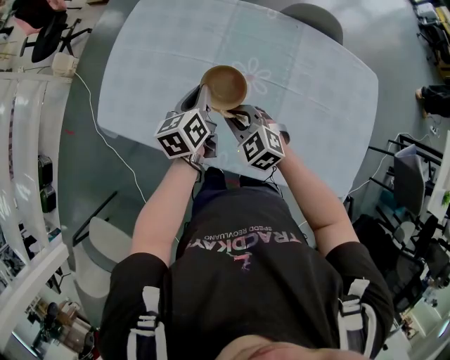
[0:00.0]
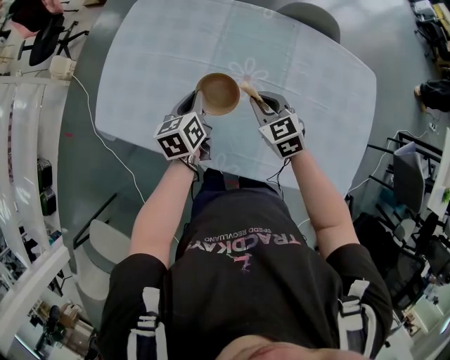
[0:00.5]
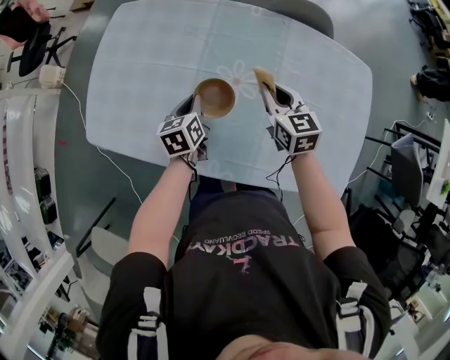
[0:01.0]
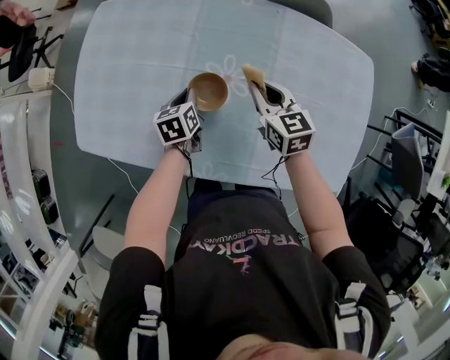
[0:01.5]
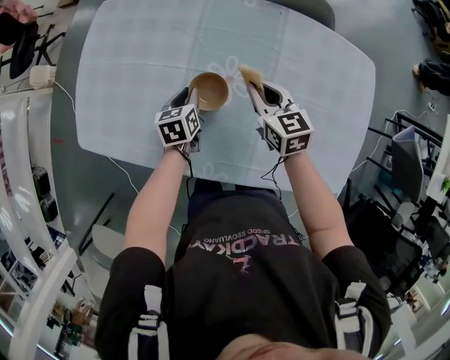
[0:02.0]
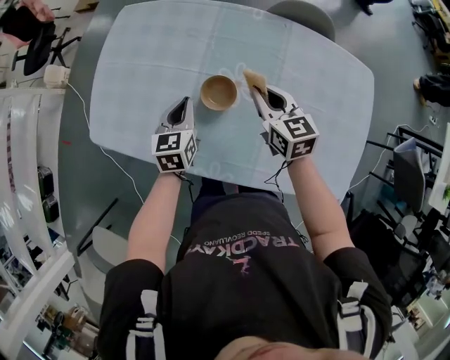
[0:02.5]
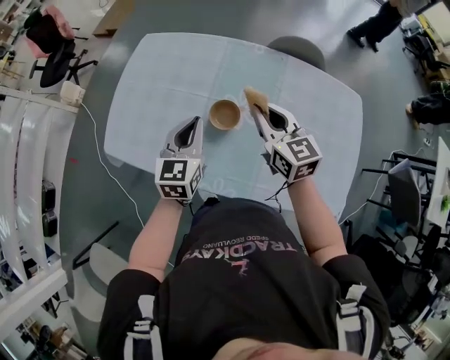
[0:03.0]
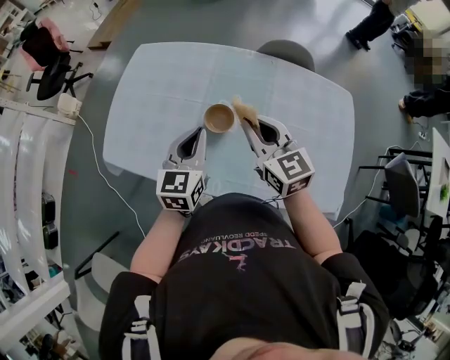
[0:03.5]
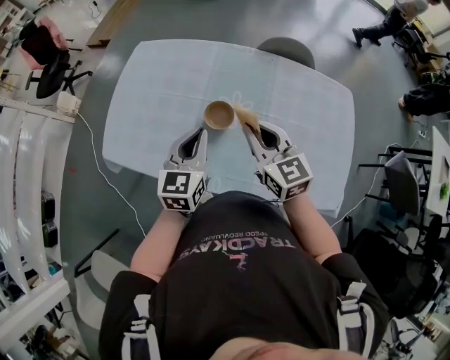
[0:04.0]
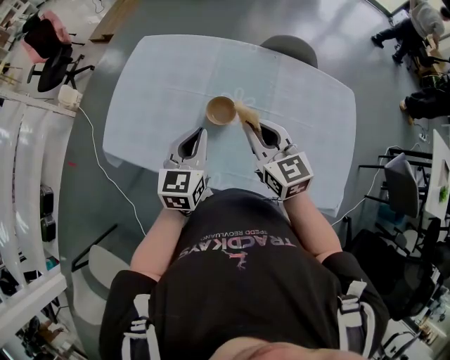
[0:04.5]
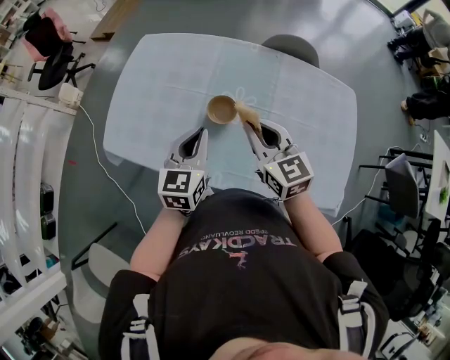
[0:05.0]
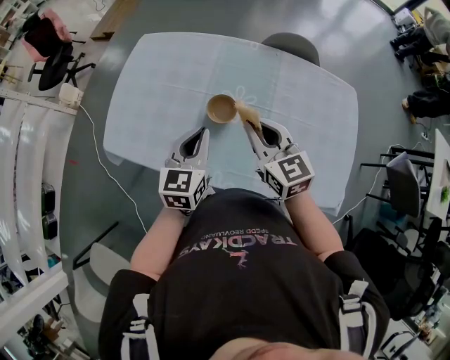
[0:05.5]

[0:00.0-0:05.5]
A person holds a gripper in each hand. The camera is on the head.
0:00.0 to 0:02.0: The left gripper moves downward, roughly 15 cm, and turns by approximately 20 degrees. Meanwhile the right gripper is displaced to the right and forward by approximately 20 cm, and rolls clockwise, seen from behind, by approximately 40 degrees.
0:02.0 to 0:03.5: The grippers both shift upward and backward by approximately 25 cm. The left gripper turns by roughly 30 degrees.
0:03.5 to 0:05.5: There are only small adjustments of the grippers.

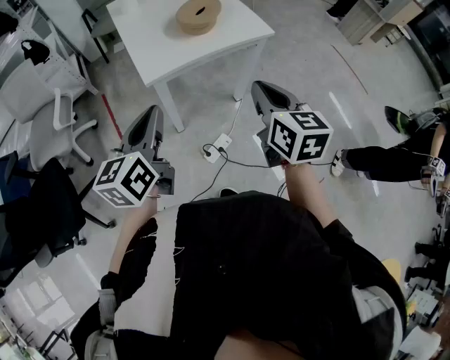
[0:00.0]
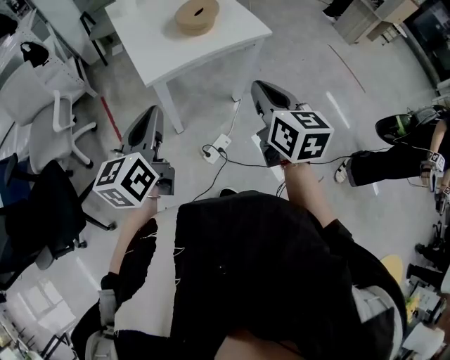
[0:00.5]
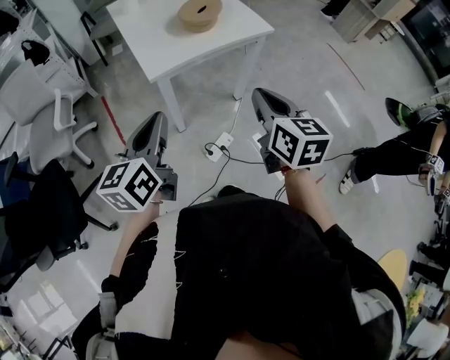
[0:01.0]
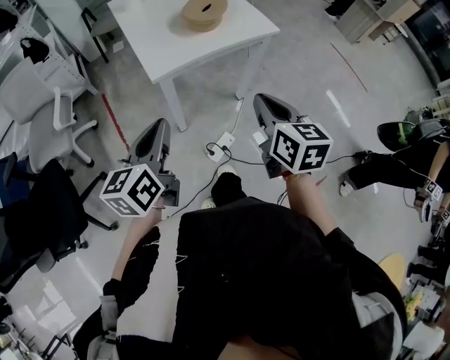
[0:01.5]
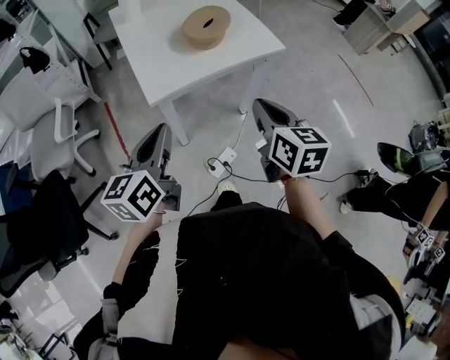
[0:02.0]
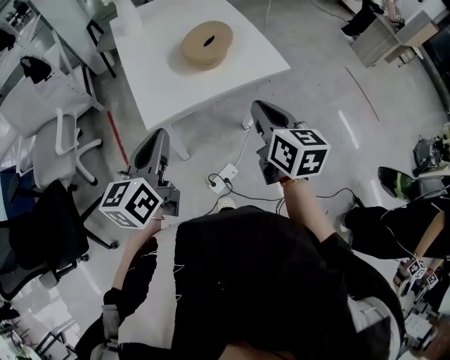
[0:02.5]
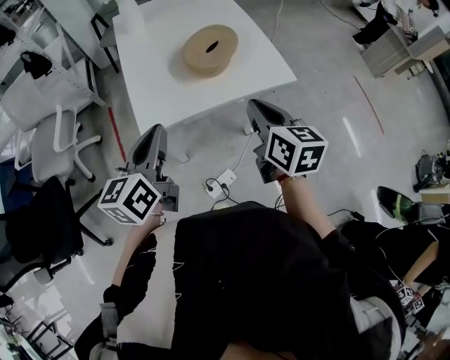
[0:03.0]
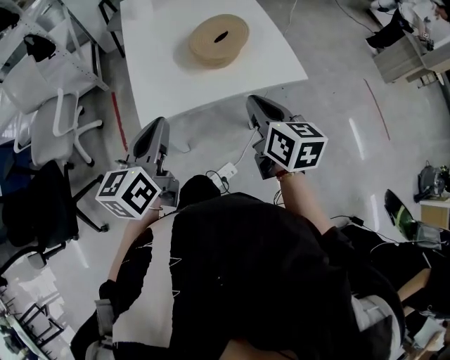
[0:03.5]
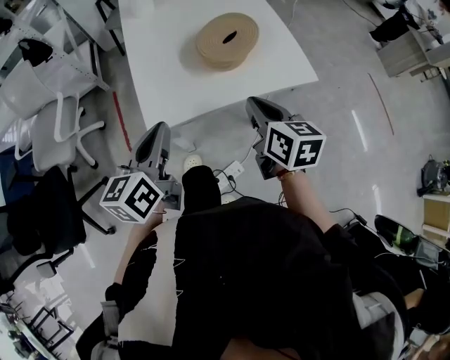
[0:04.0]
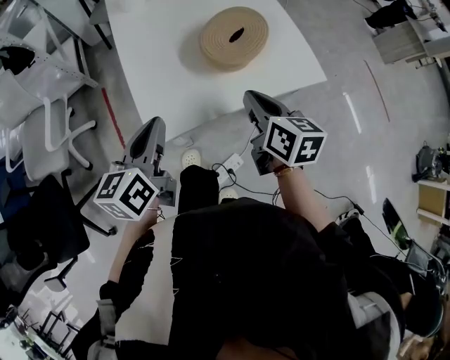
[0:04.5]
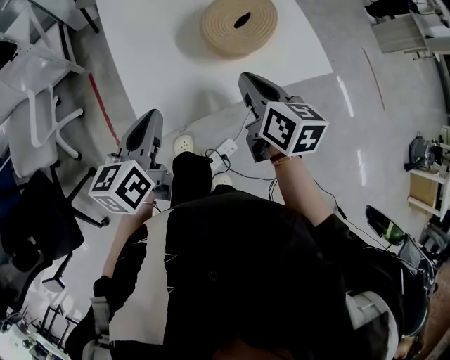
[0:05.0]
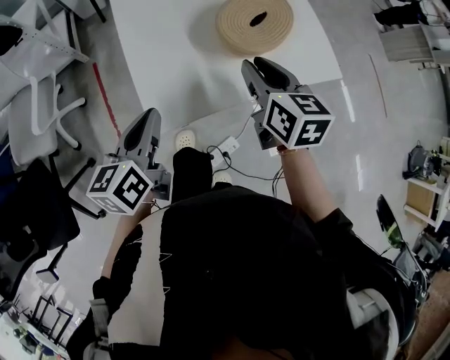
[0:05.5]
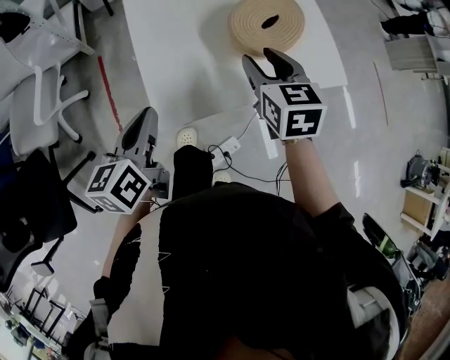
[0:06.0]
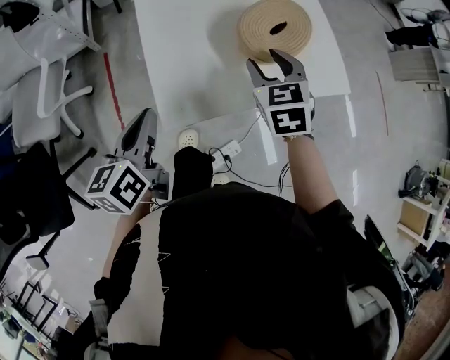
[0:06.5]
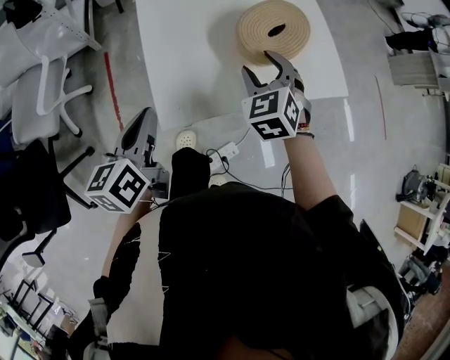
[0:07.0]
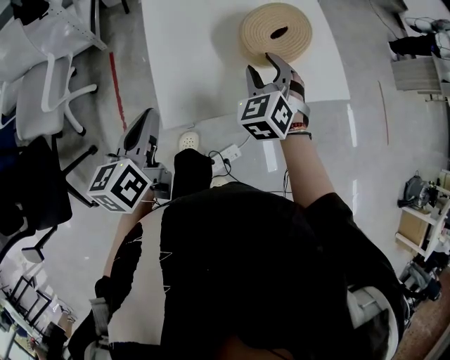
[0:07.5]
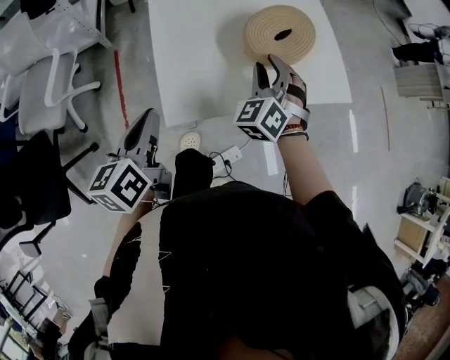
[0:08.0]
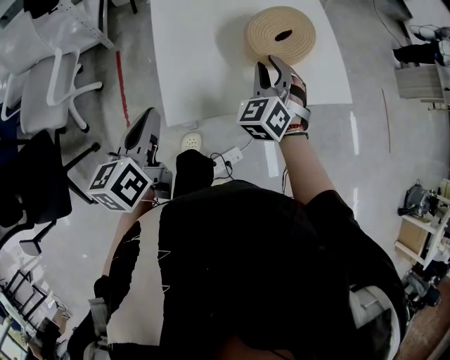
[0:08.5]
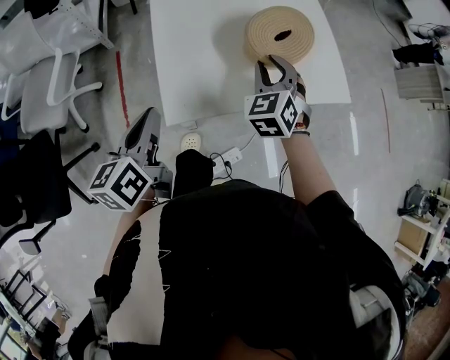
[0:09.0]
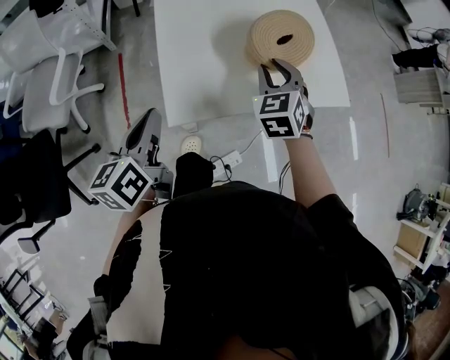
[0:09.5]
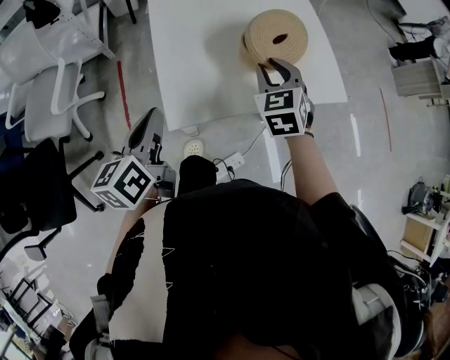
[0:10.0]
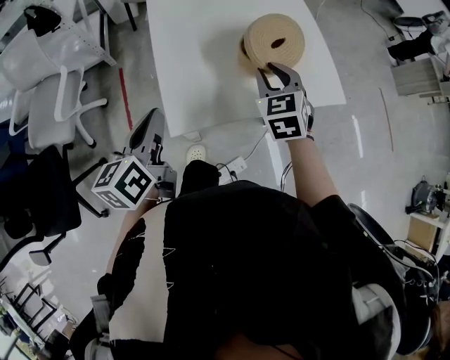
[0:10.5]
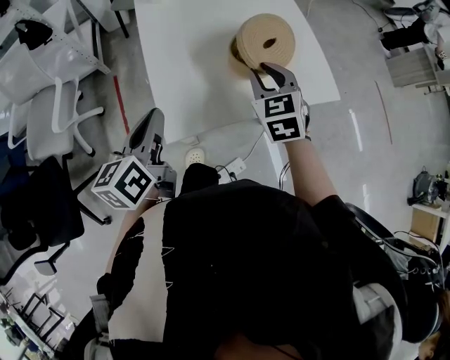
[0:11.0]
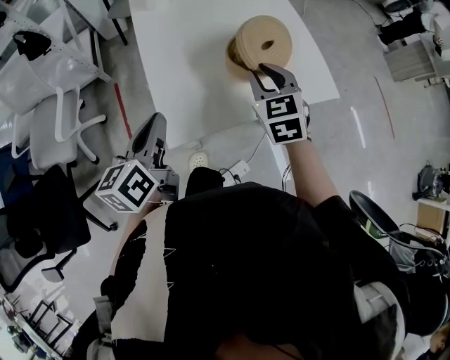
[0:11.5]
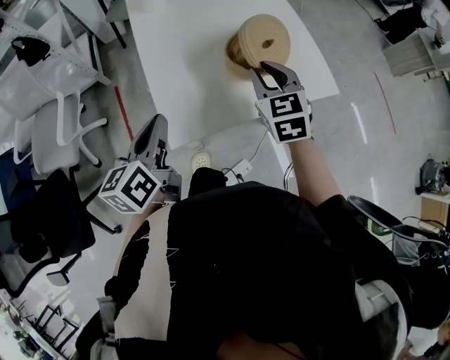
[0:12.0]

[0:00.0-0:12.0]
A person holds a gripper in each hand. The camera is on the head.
0:00.0 to 0:02.0: The two grippers go some 5 cm forward.
0:02.0 to 0:04.0: Both grippers move forward, roughly 15 cm.
0:04.0 to 0:06.0: The right gripper is displaced forward and to the left by about 15 cm, swivels about 20 degrees, and opens; the left gripper travels to the left, downward and forward by some 15 cm.
0:06.0 to 0:08.0: The right gripper rolls counterclockwise, seen from behind, by about 50 degrees.
0:08.0 to 0:10.0: The right gripper swivels roughly 30 degrees.
0:10.0 to 0:12.0: The grippers move only a little.

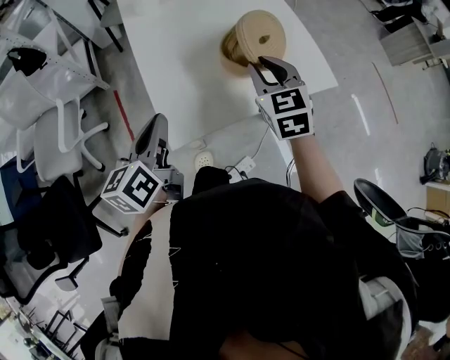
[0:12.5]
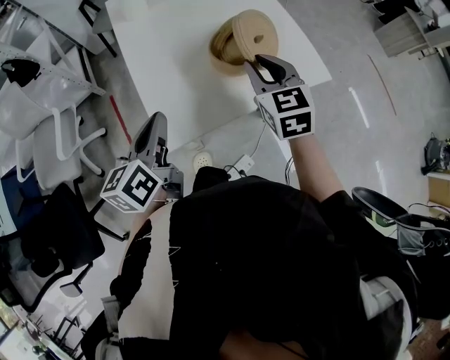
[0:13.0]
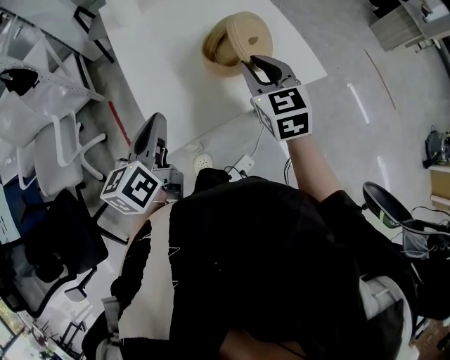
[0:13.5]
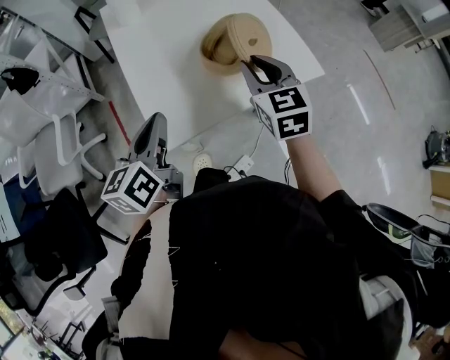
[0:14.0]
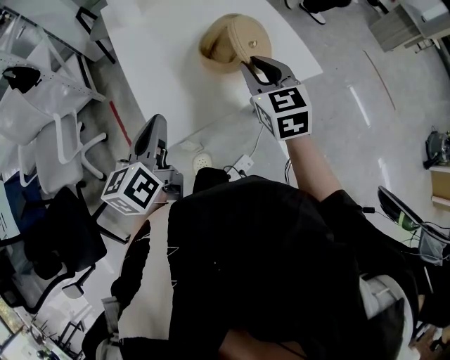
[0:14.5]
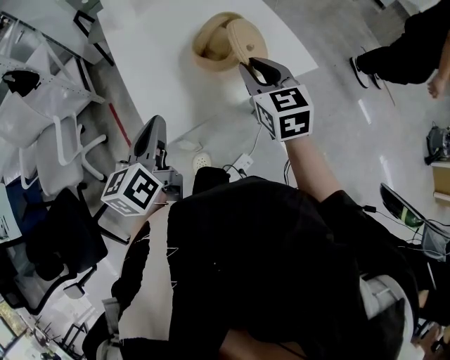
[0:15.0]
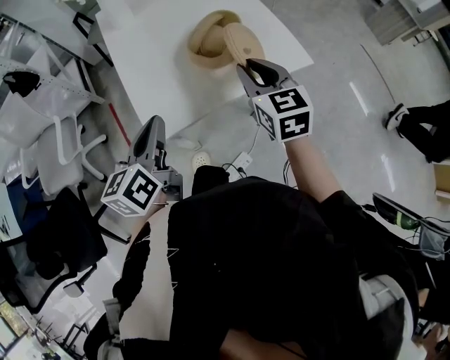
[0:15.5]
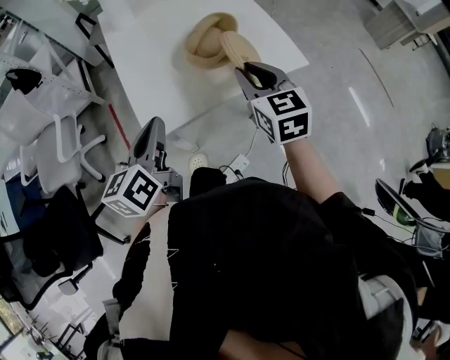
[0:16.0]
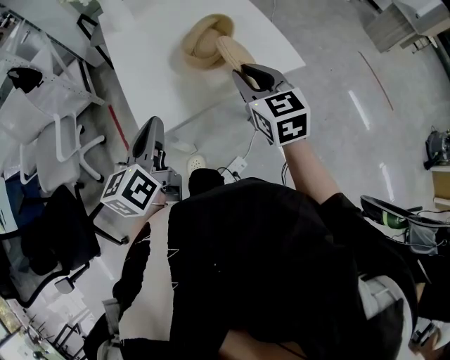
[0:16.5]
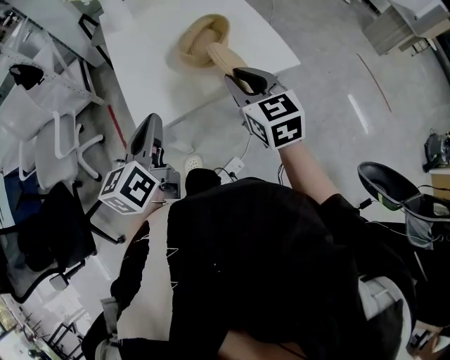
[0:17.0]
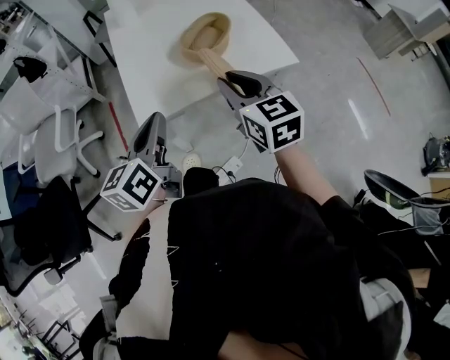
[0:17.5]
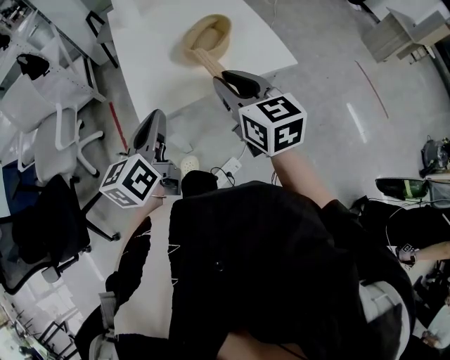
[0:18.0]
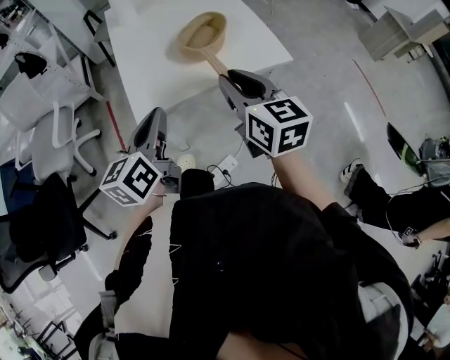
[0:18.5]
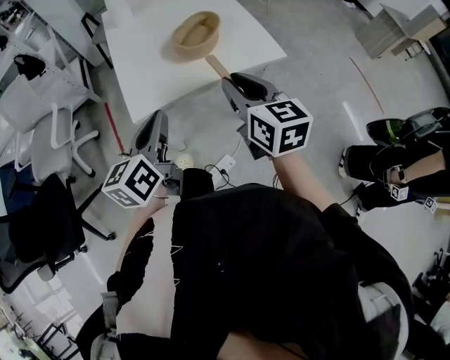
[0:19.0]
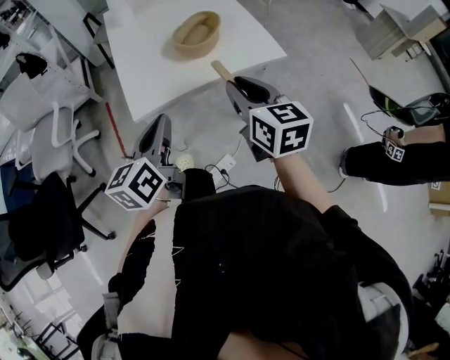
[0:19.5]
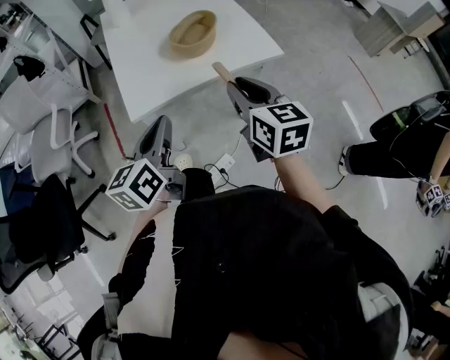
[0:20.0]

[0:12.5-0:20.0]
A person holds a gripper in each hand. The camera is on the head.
0:12.5 to 0:14.5: The grippers make only small movements.
0:14.5 to 0:16.5: The left gripper changes place by some 5 cm, while the right gripper goes some 5 cm backward.
0:16.5 to 0:18.0: The right gripper is displaced backward by roughly 5 cm.
0:18.0 to 0:20.0: The right gripper heads to the right, covering some 5 cm; the left gripper goes approximately 5 cm backward.

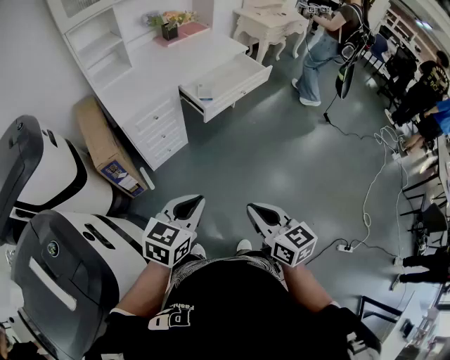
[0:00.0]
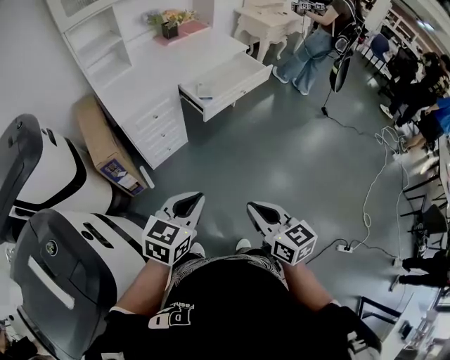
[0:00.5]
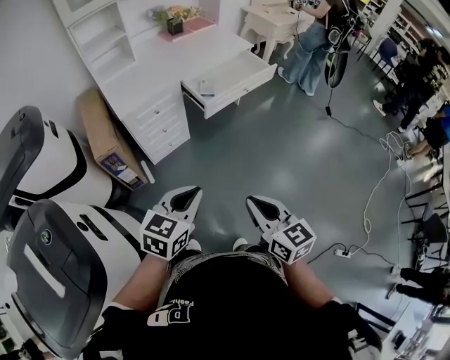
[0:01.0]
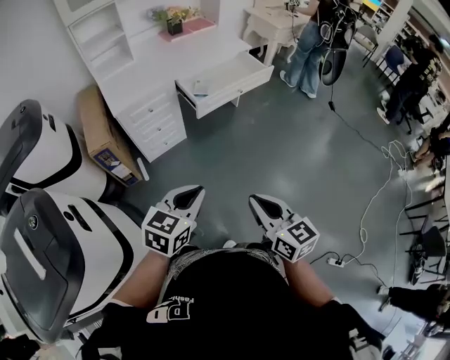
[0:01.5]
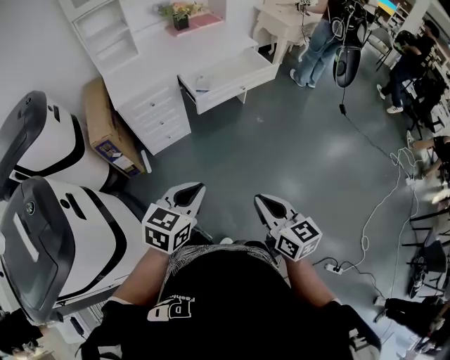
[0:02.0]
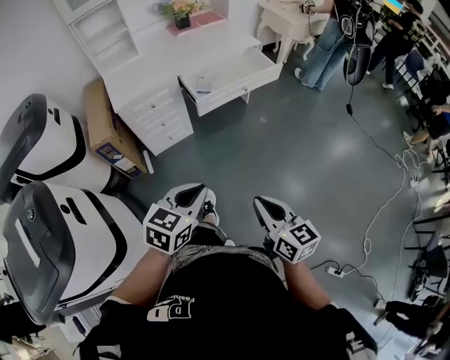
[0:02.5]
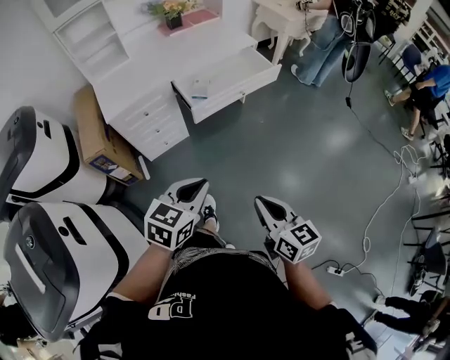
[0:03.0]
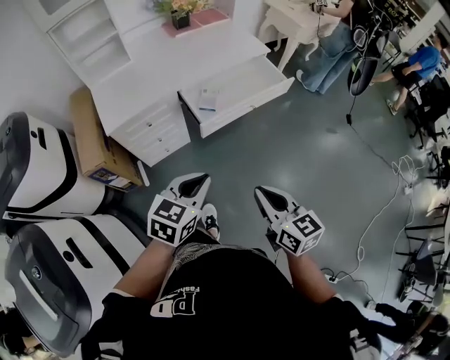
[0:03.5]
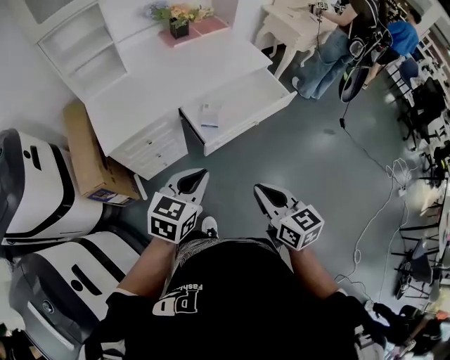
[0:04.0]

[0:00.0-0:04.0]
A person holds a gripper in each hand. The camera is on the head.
0:00.0 to 0:02.0: The two grippers go roughly 15 cm to the right.
0:02.0 to 0:04.0: Both grippers travel together forward, some 35 cm.
